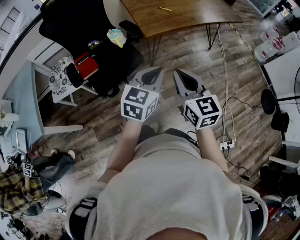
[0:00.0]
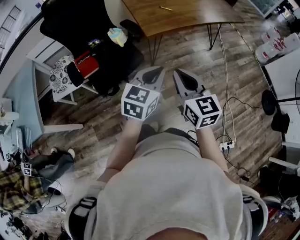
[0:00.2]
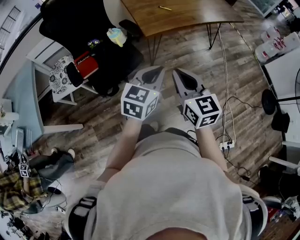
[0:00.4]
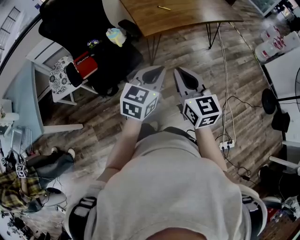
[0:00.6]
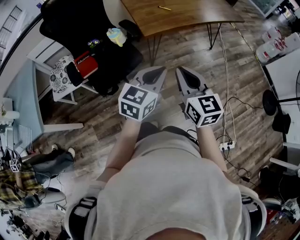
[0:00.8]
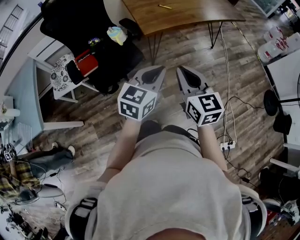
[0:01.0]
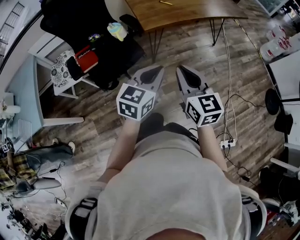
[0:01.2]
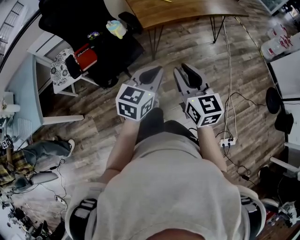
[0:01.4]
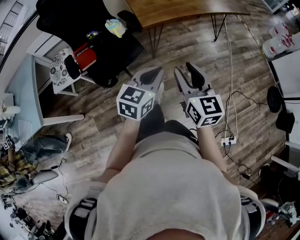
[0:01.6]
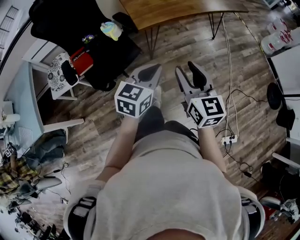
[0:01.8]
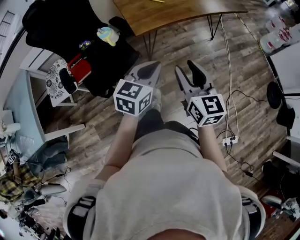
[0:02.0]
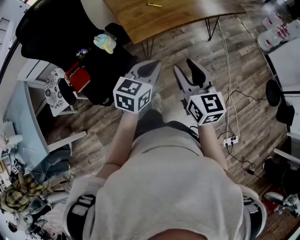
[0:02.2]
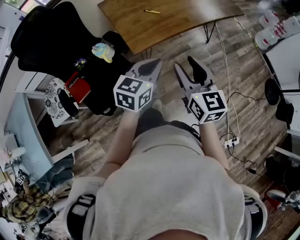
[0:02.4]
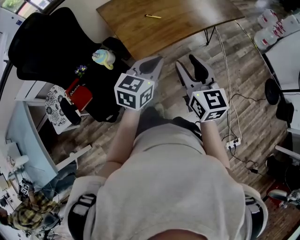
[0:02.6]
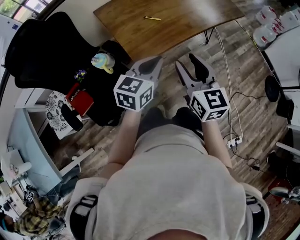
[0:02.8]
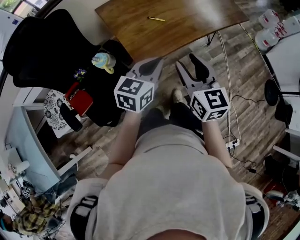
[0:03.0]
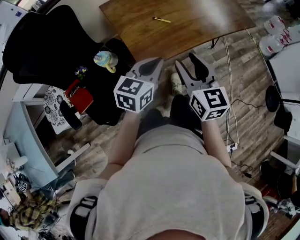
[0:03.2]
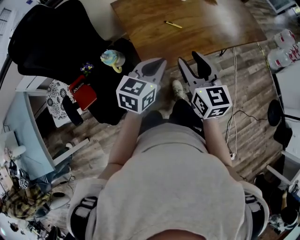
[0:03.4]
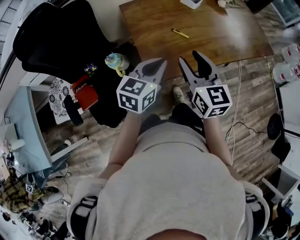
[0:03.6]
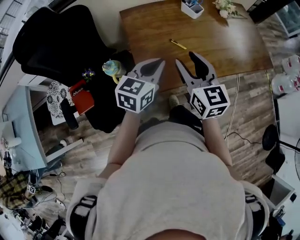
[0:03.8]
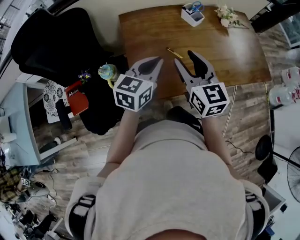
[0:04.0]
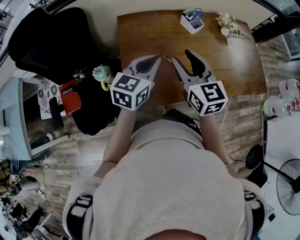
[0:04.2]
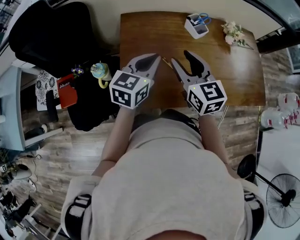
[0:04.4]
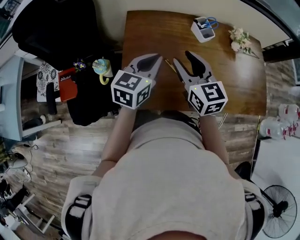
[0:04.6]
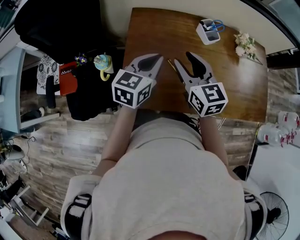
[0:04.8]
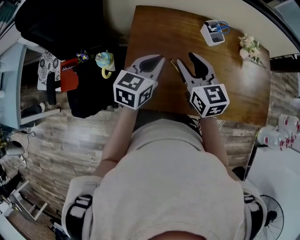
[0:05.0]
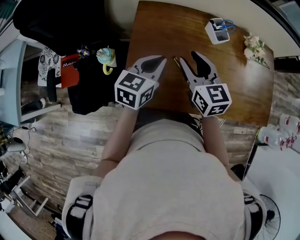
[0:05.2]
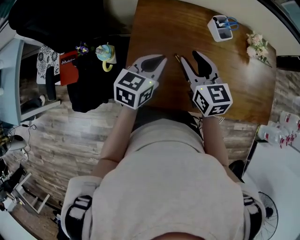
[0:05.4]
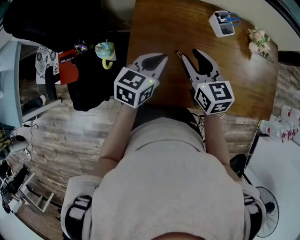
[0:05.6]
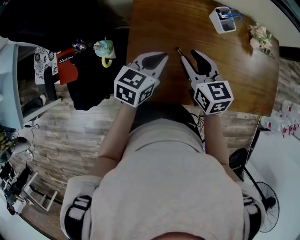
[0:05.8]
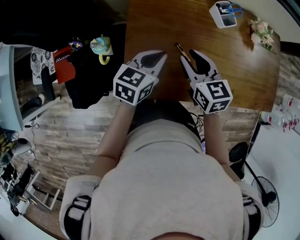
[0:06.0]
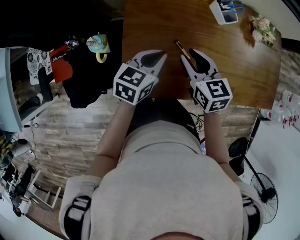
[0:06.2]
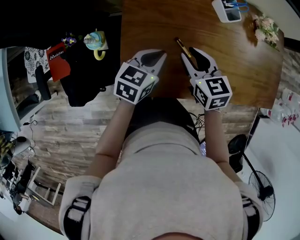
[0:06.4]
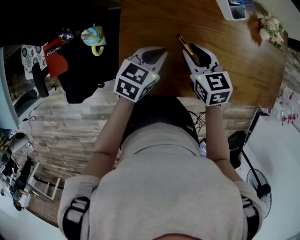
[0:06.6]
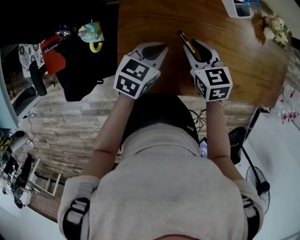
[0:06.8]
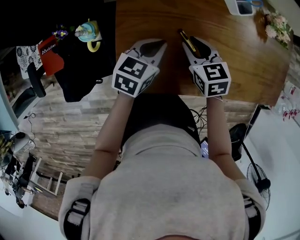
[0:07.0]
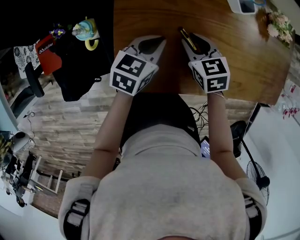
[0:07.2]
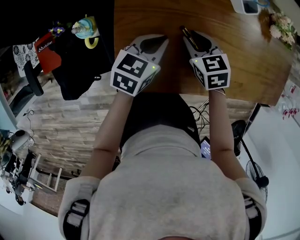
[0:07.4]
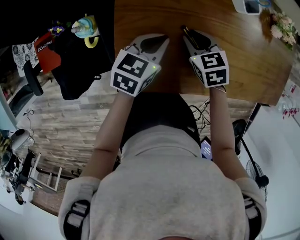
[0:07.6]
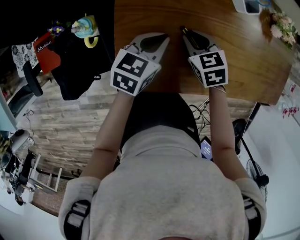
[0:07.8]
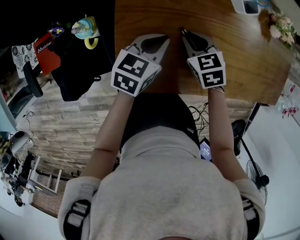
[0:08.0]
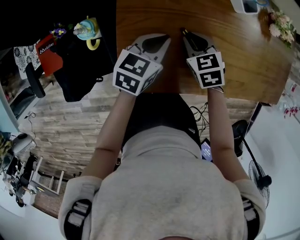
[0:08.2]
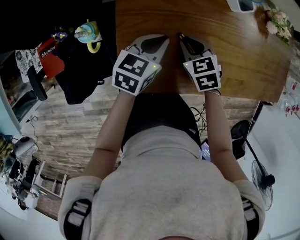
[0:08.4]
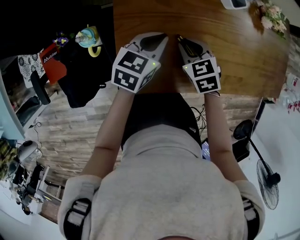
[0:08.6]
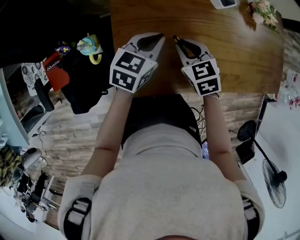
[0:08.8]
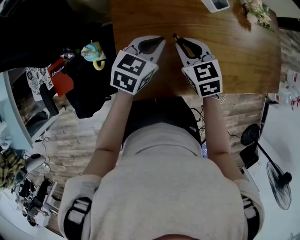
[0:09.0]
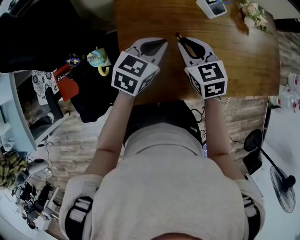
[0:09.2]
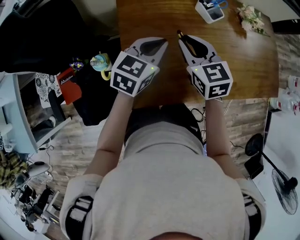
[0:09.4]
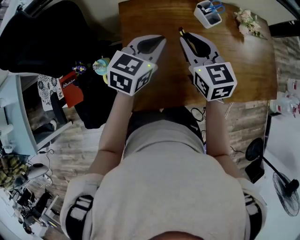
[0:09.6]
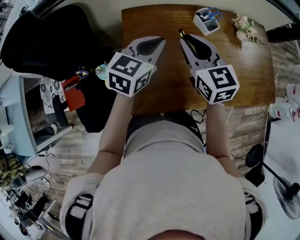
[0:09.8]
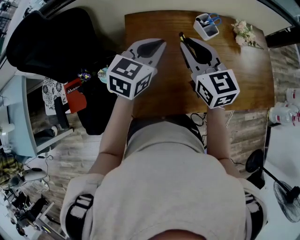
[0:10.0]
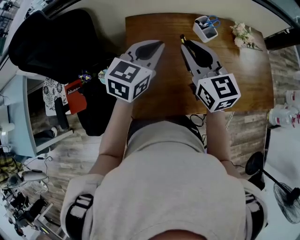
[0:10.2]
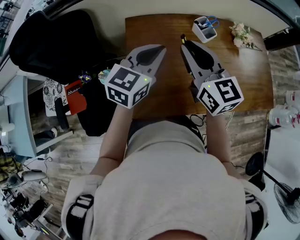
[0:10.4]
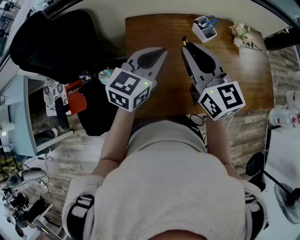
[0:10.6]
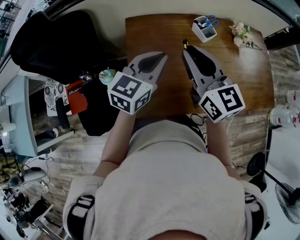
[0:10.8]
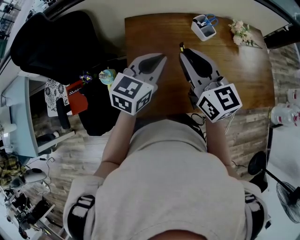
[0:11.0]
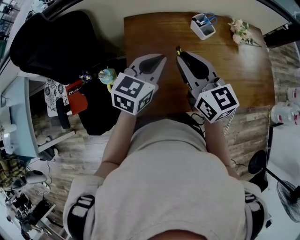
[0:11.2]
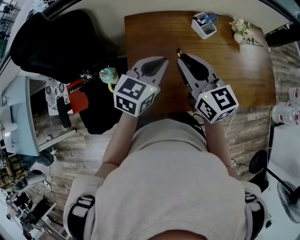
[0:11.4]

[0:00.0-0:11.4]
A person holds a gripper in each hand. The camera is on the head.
0:00.0 to 0:01.4: The right gripper travels to the right by about 5 cm, and opens its fingers.
0:01.4 to 0:02.8: The grippers both shift forward by some 30 cm. The right gripper opens.
0:02.8 to 0:04.2: The left gripper shifts by approximately 25 cm, and swivels roughly 20 degrees. The right gripper shifts by about 30 cm, and changes its angle by approximately 30 degrees.
0:04.2 to 0:05.6: Both grippers move downward and forward, some 10 cm.
0:05.6 to 0:07.2: Both grippers move downward, roughly 15 cm. The right gripper rotates some 30 degrees.
0:07.2 to 0:08.6: The grippers make only small movements.
0:08.6 to 0:10.0: The grippers both shift upward by roughly 25 cm. The right gripper tilts its fingers approximately 40 degrees upward. Meanwhile the left gripper changes its angle by approximately 20 degrees.
0:10.0 to 0:11.4: Both grippers move backward, roughly 5 cm.

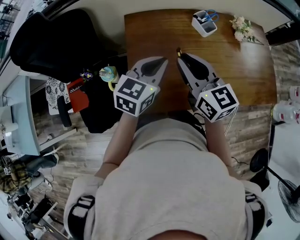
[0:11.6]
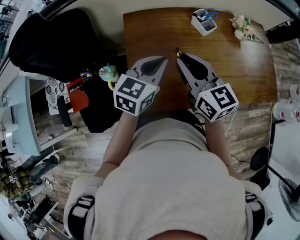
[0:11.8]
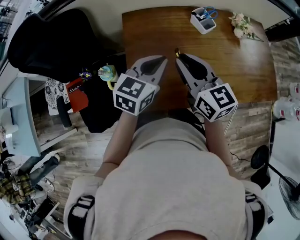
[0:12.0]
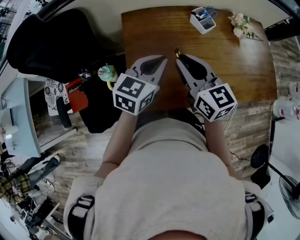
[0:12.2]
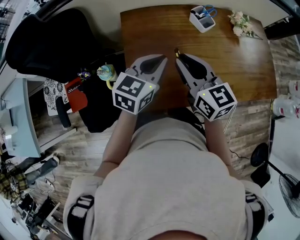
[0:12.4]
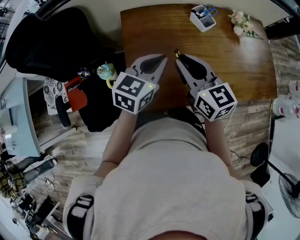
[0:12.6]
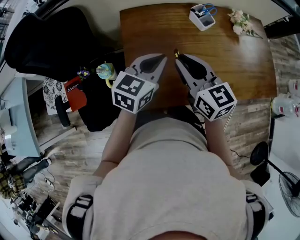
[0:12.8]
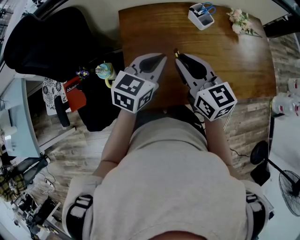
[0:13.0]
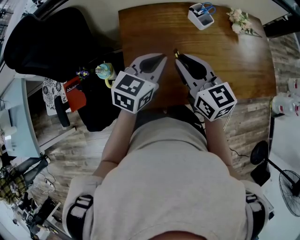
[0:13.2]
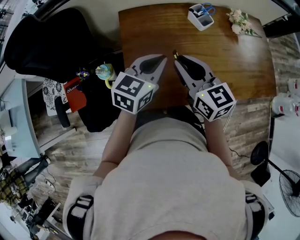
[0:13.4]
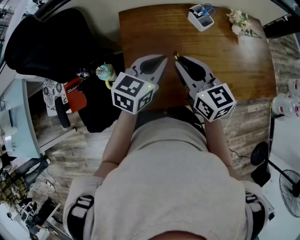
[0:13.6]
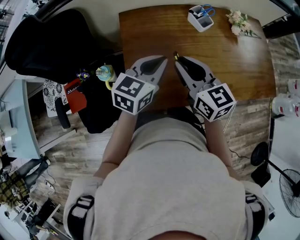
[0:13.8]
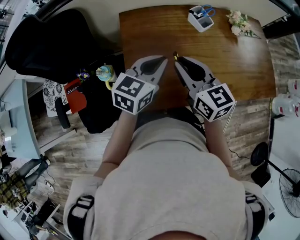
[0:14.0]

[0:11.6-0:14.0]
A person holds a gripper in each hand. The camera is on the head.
0:11.6 to 0:12.8: The grippers move only a little.
0:12.8 to 0:14.0: Neither gripper changes place.

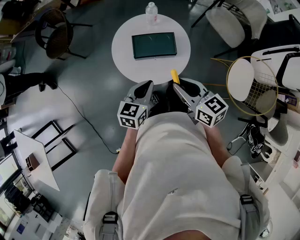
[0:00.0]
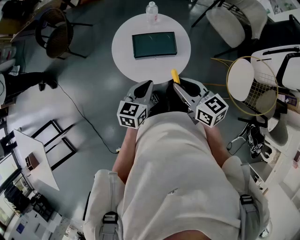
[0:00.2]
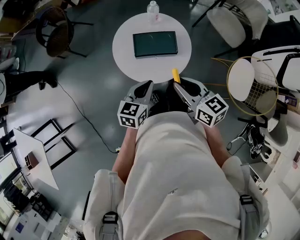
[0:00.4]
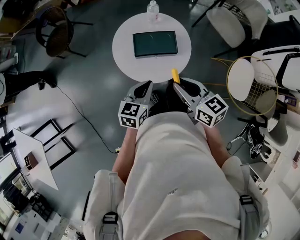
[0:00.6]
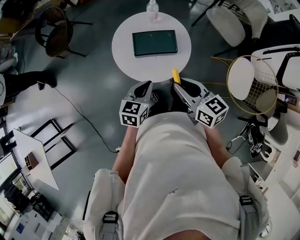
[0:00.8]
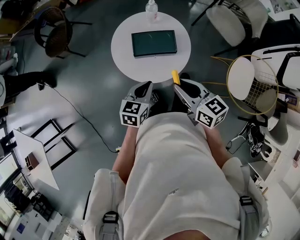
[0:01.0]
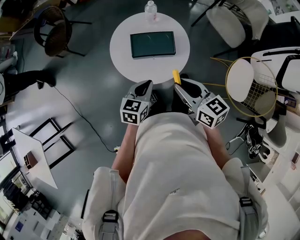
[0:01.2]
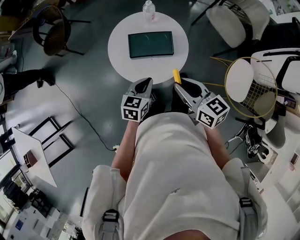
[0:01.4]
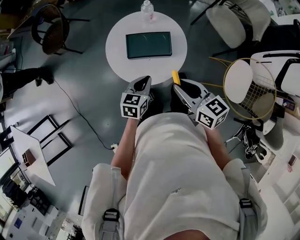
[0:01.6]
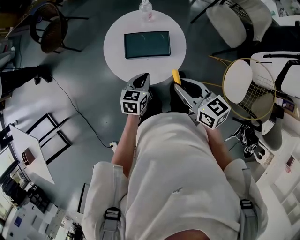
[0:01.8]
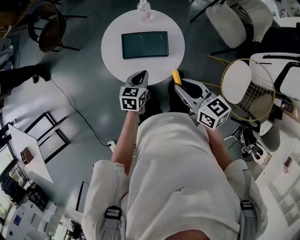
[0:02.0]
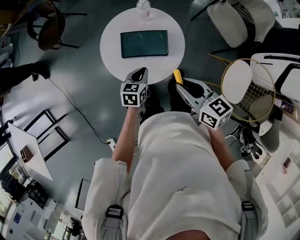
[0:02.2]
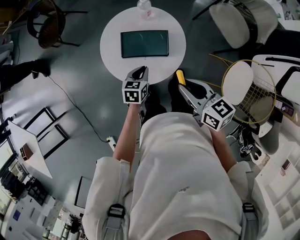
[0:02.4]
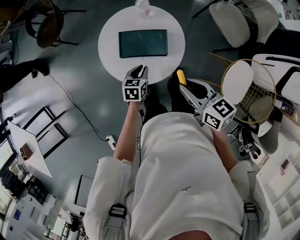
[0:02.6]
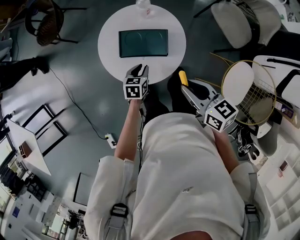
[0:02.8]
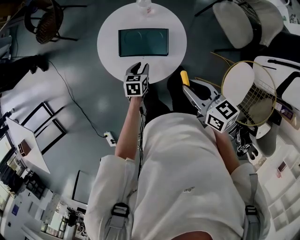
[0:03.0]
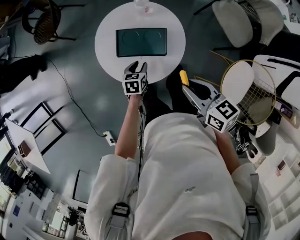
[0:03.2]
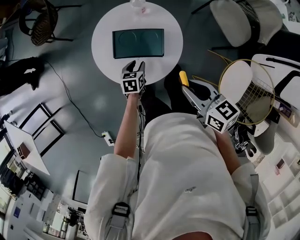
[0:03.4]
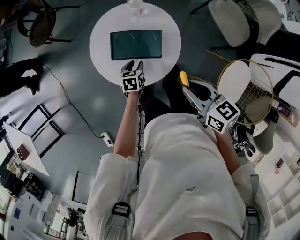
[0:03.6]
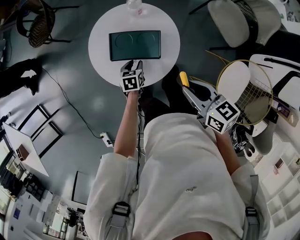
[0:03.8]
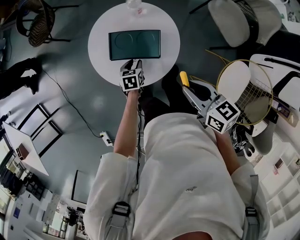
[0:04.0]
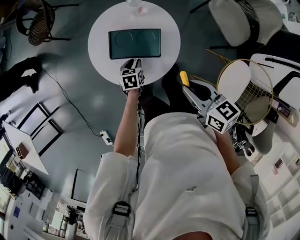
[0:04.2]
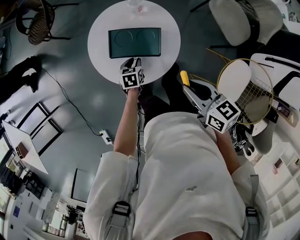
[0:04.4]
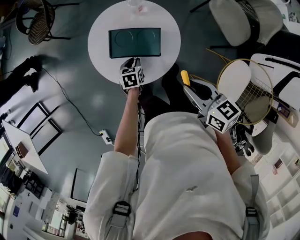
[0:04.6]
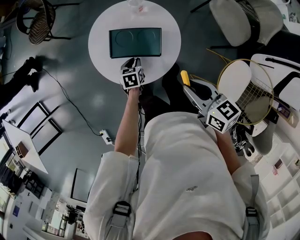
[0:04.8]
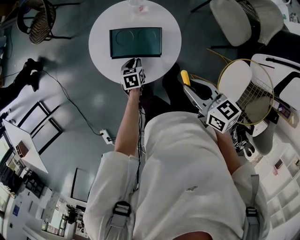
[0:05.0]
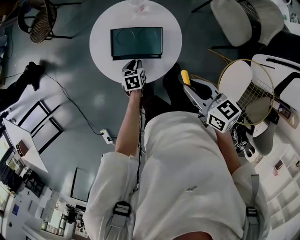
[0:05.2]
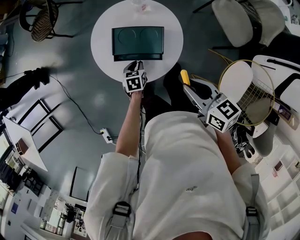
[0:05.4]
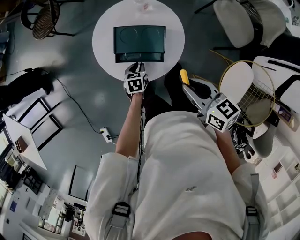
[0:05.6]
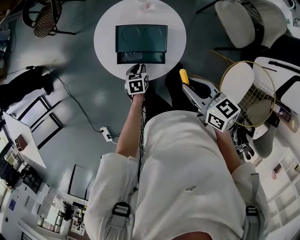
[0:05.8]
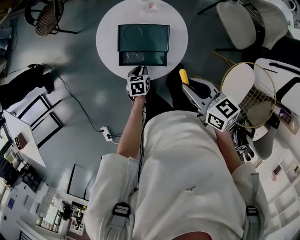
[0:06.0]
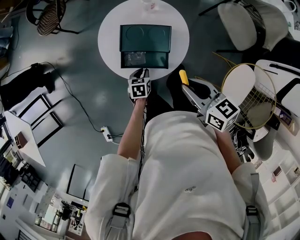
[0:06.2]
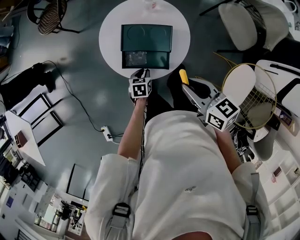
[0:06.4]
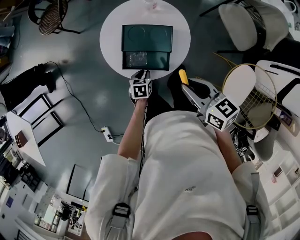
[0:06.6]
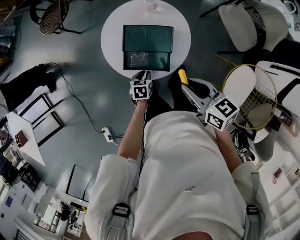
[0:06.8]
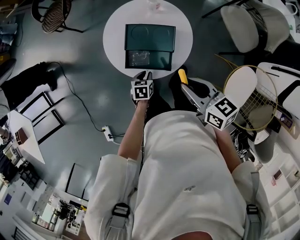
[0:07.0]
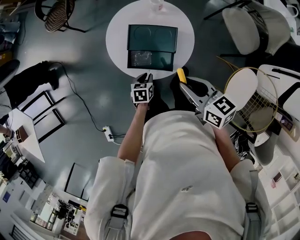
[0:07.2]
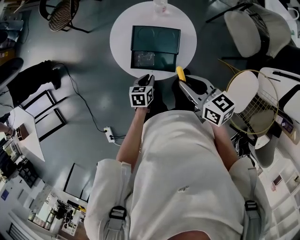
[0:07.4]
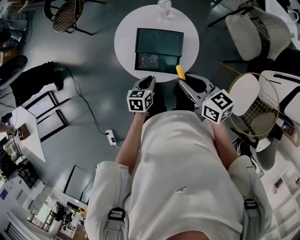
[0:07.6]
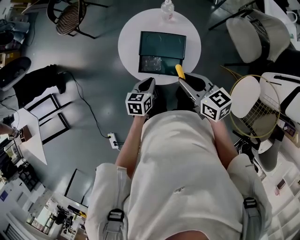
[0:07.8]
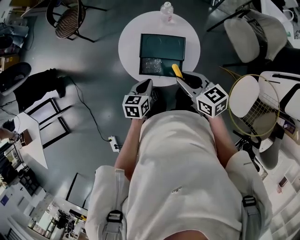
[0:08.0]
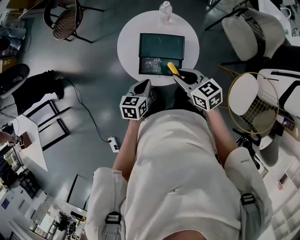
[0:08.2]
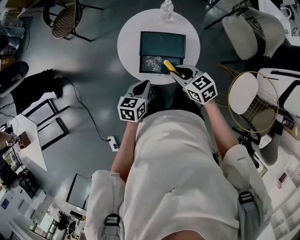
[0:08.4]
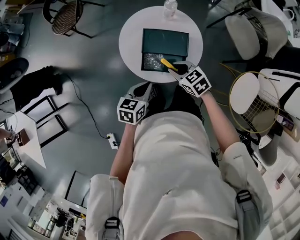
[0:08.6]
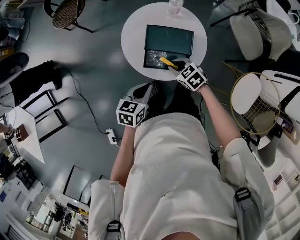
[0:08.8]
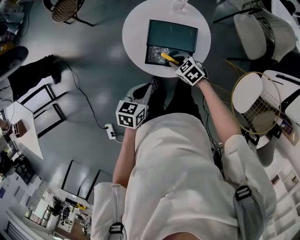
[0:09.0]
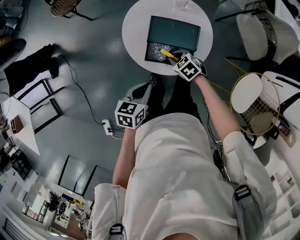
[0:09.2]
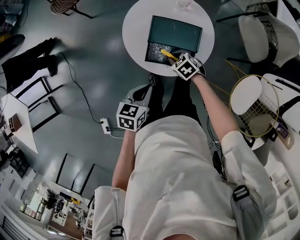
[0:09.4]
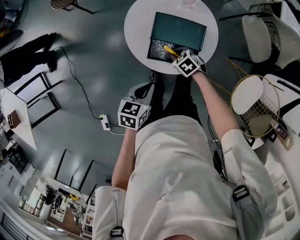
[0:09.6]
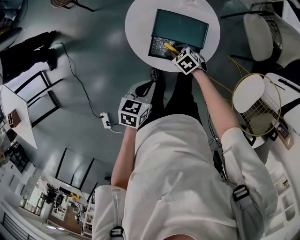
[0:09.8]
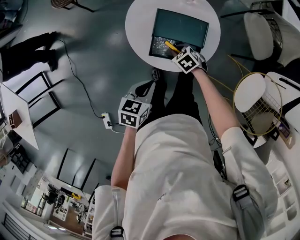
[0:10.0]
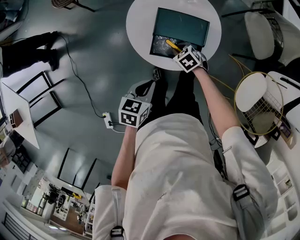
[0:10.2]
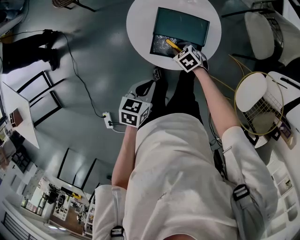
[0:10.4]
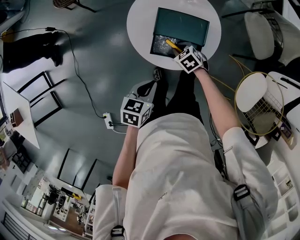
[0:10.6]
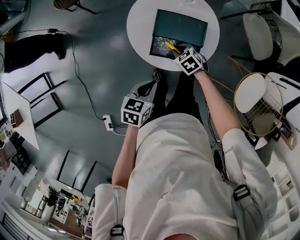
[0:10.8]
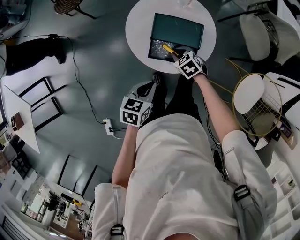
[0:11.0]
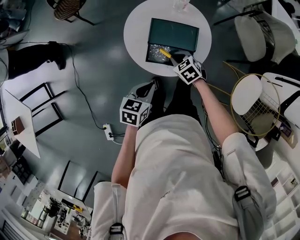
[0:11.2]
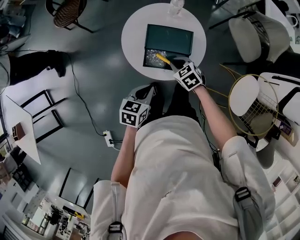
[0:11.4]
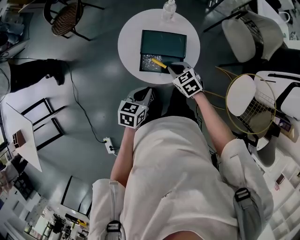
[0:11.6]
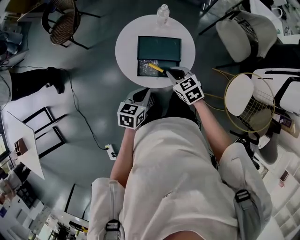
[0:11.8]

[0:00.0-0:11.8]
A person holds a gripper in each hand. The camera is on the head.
0:00.0 to 0:01.4: The left gripper is displaced downward by some 5 cm.
0:01.4 to 0:03.0: The right gripper shifts some 10 cm to the right. Meanwhile the left gripper moves downward and forward, about 15 cm, turns by approximately 20 degrees, and opens its fingers.
0:03.0 to 0:04.4: The left gripper goes approximately 5 cm downward.
0:04.4 to 0:06.0: The left gripper is displaced backward by roughly 5 cm.
0:06.0 to 0:07.4: The left gripper goes about 5 cm upward.
0:07.4 to 0:08.8: The right gripper travels downward and to the left by about 20 cm, and swivels about 40 degrees. Meanwhile the left gripper moves upward and to the left, approximately 15 cm.
0:08.8 to 0:10.4: The right gripper moves downward, some 10 cm.
0:10.4 to 0:11.8: The right gripper goes approximately 20 cm upward, and swivels roughly 30 degrees; the left gripper ends up roughly 5 cm from where it was.
